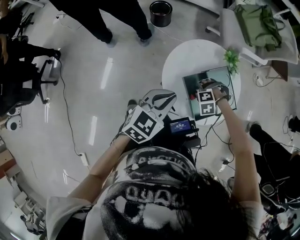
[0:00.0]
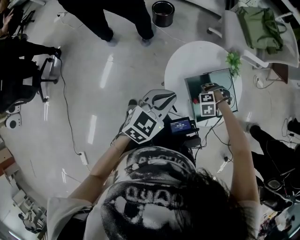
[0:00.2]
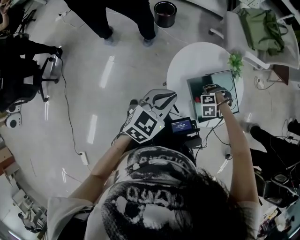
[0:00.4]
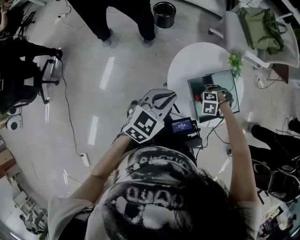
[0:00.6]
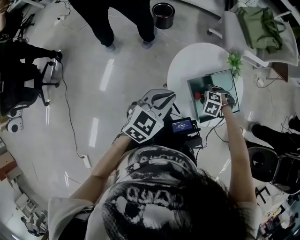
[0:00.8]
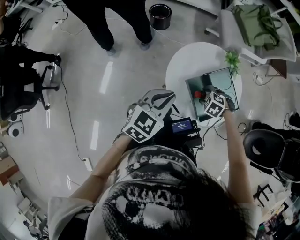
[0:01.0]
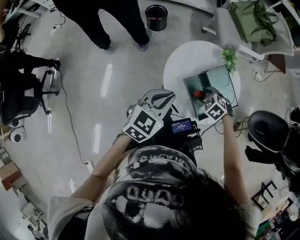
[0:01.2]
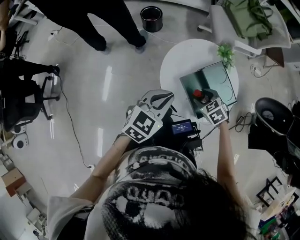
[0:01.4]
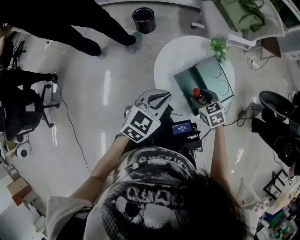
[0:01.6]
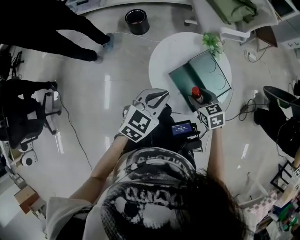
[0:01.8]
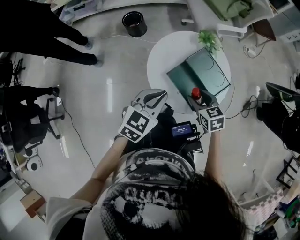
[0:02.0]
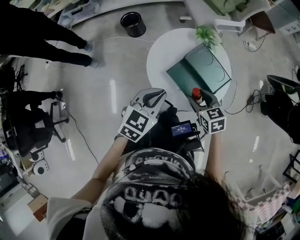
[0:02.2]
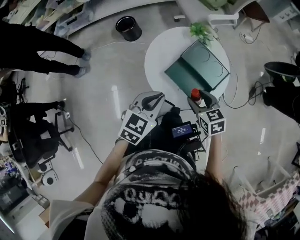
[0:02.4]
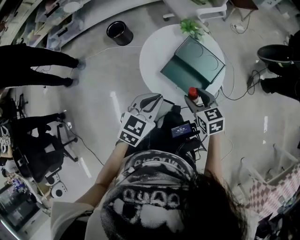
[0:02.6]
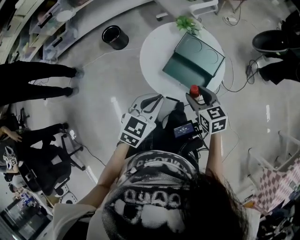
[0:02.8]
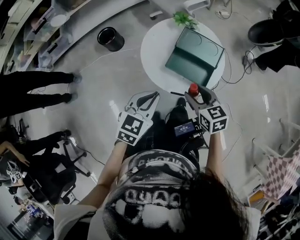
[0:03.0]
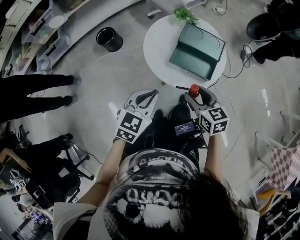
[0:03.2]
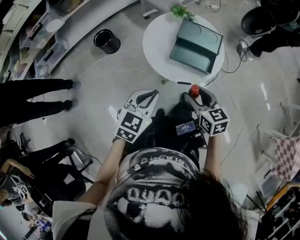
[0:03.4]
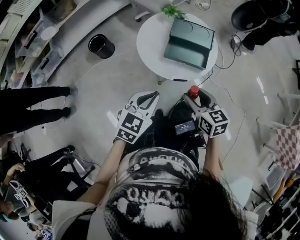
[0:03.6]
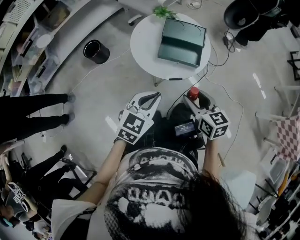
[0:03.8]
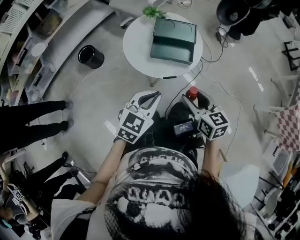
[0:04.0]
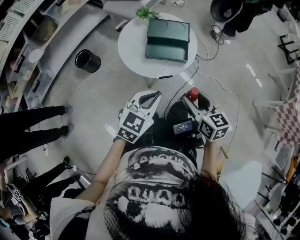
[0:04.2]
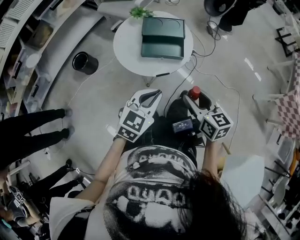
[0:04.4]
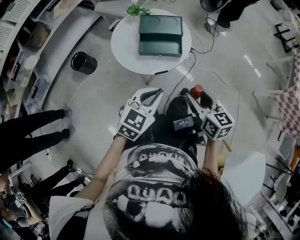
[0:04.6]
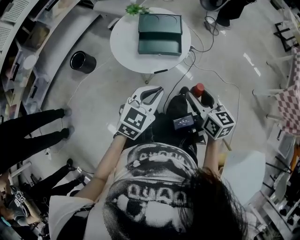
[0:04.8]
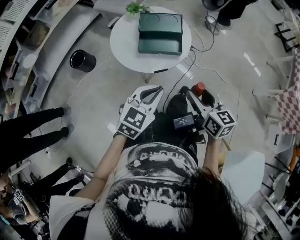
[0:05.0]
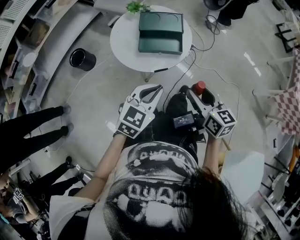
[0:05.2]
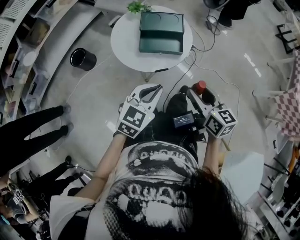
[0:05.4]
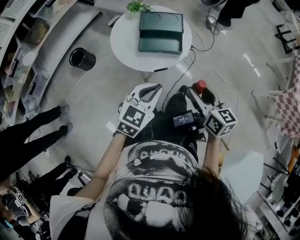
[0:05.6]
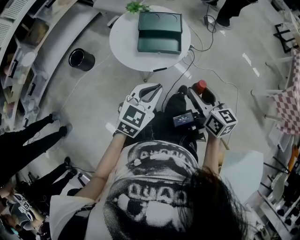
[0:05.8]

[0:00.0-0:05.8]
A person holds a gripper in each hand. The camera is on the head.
0:00.0 to 0:01.4: The right gripper goes some 5 cm upward, and rolls clockwise, seen from behind, by some 70 degrees.
0:01.4 to 0:02.8: The left gripper changes its angle by about 20 degrees. Meanwhile the right gripper shifts about 5 cm upward, and changes its angle by approximately 60 degrees.
0:02.8 to 0:04.4: The left gripper ends up about 10 cm from where it was, and rotates about 30 degrees, while the right gripper moves roughly 20 cm, and swivels approximately 40 degrees.
0:04.4 to 0:05.8: There are only small adjustments of the grippers.

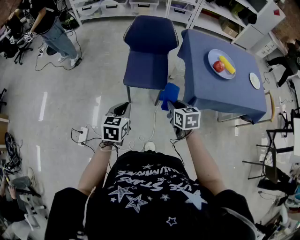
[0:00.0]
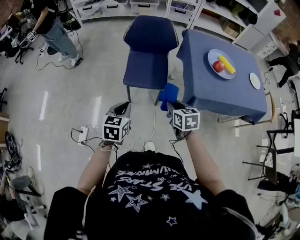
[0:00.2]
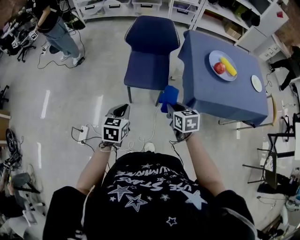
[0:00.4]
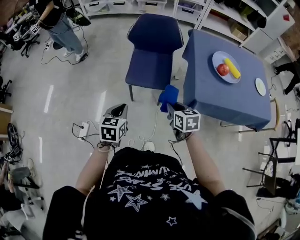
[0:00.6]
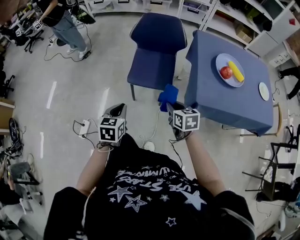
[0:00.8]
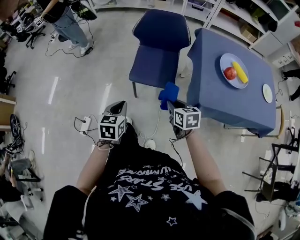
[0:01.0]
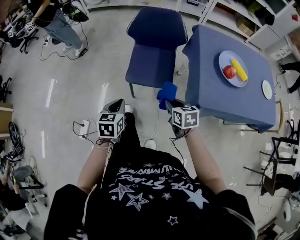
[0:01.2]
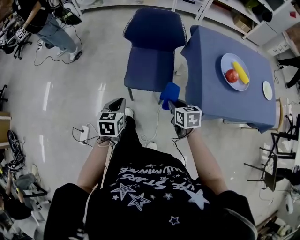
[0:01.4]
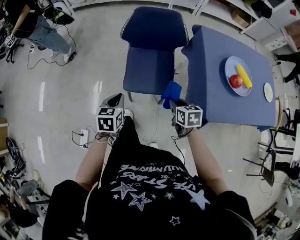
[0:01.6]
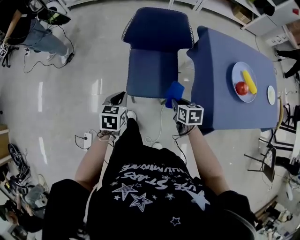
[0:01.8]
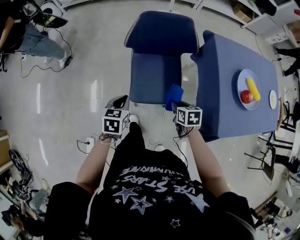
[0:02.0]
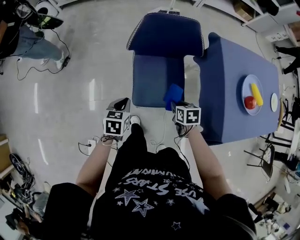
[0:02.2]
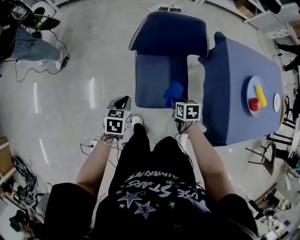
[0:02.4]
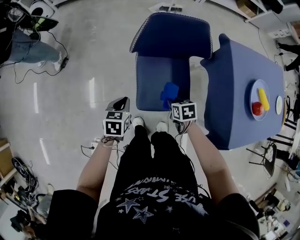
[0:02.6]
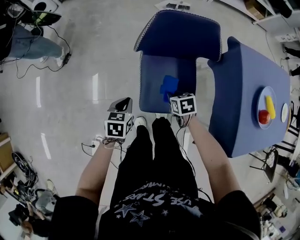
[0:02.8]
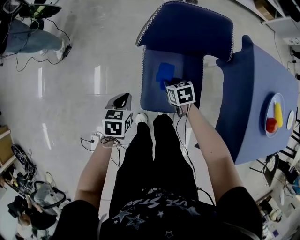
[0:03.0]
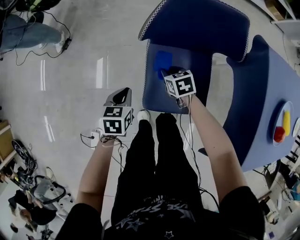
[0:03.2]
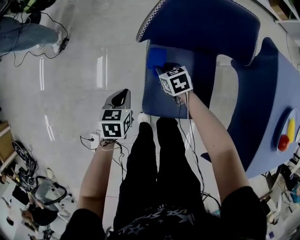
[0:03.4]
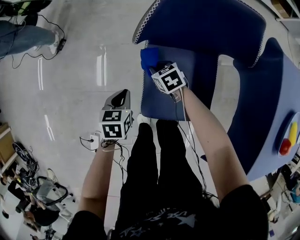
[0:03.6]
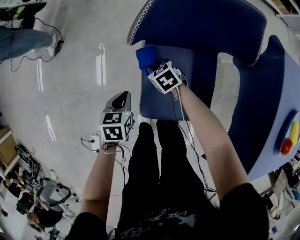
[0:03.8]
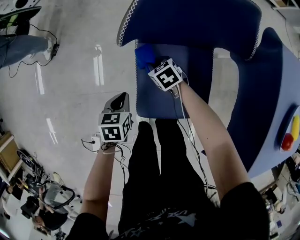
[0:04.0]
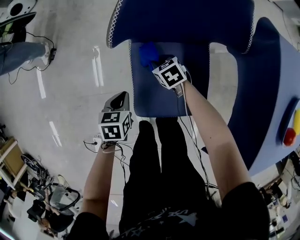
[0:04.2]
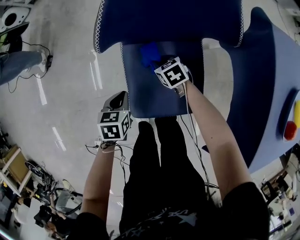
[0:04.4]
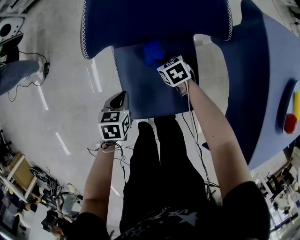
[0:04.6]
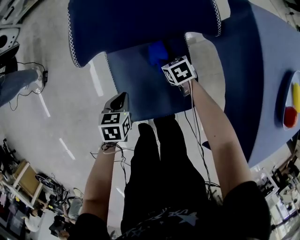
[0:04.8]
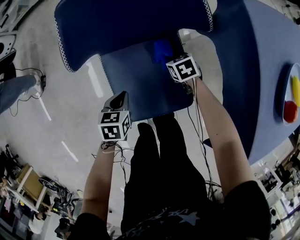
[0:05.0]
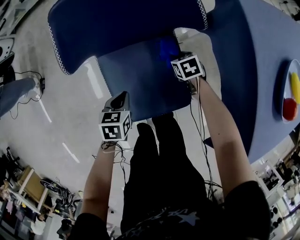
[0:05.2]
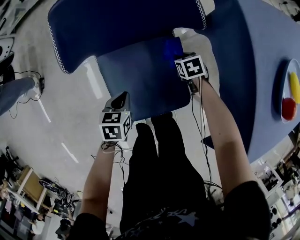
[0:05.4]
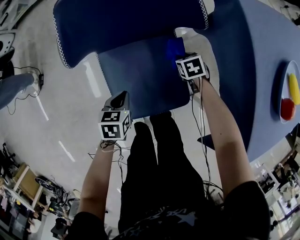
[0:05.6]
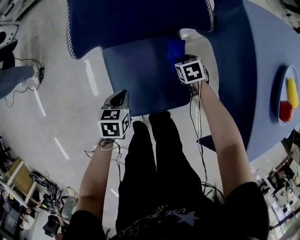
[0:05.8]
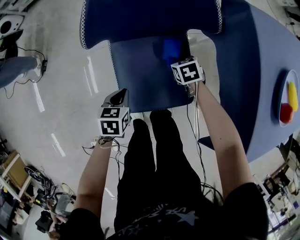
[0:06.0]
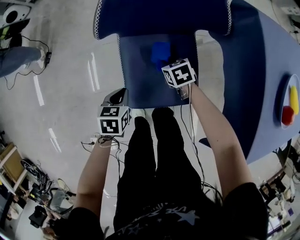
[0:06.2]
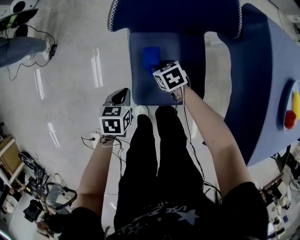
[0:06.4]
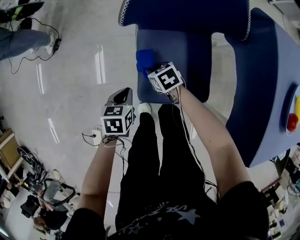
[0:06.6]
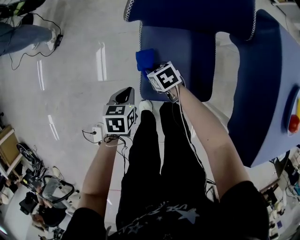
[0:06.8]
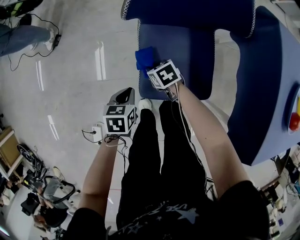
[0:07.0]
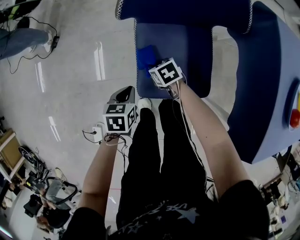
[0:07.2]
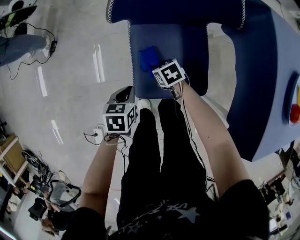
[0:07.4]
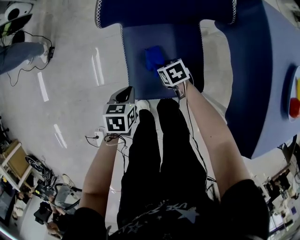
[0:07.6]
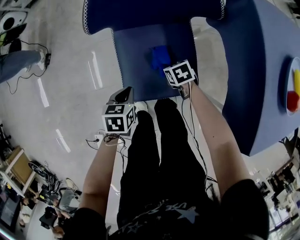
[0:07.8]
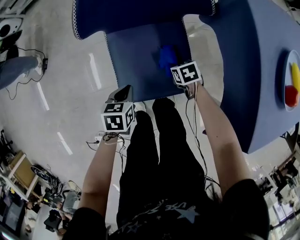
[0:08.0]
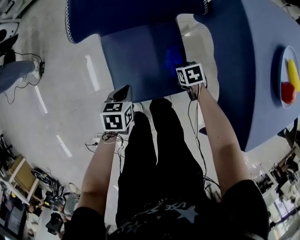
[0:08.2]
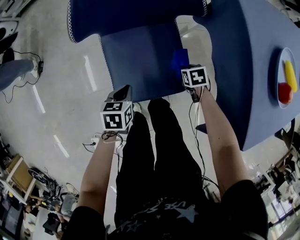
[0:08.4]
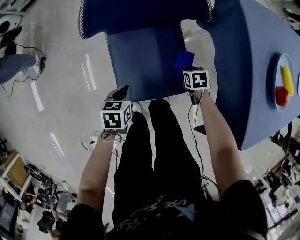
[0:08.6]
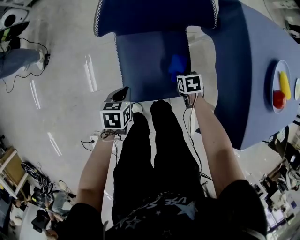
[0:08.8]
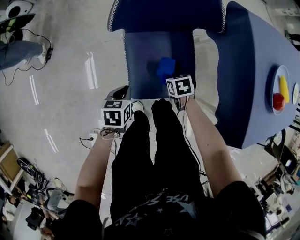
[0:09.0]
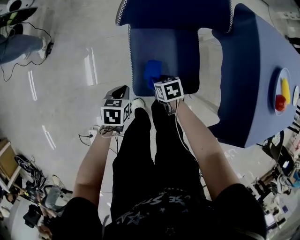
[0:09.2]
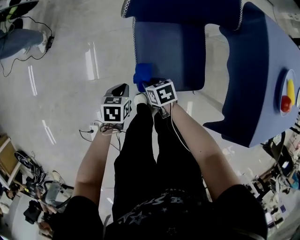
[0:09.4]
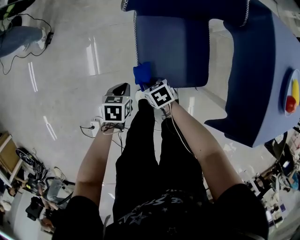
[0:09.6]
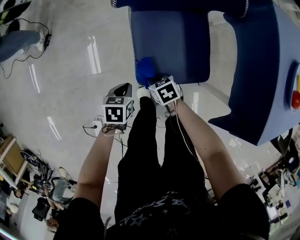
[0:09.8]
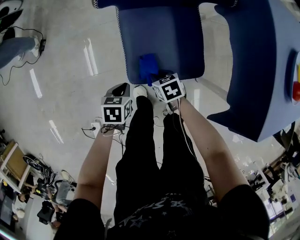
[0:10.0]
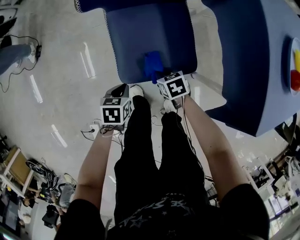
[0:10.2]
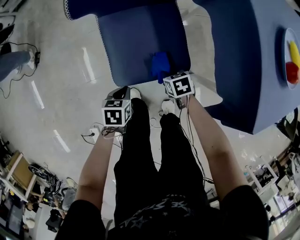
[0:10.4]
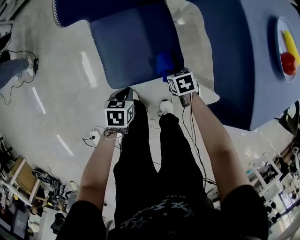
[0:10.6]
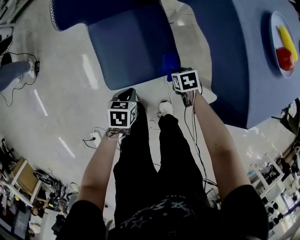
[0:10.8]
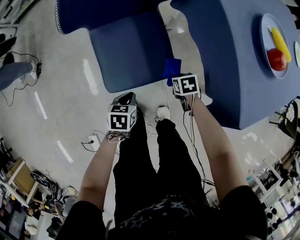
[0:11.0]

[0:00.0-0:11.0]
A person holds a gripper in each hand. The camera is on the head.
0:00.0 to 0:01.6: The right gripper moves forward and downward, approximately 20 cm. Meanwhile the left gripper heads forward, covering some 20 cm.
0:01.6 to 0:03.2: The left gripper is displaced forward and downward by some 30 cm. Meanwhile the right gripper moves forward, downward and to the left, approximately 40 cm.
0:03.2 to 0:04.8: The grippers both shift to the right and downward by about 20 cm.
0:04.8 to 0:06.2: Both grippers travel together backward, approximately 5 cm. The right gripper moves some 10 cm to the right and comes back.
0:06.2 to 0:07.8: The left gripper reaches approximately 5 cm to the left, then returns. The right gripper goes approximately 5 cm backward, and moves some 15 cm to the left and comes back.
0:07.8 to 0:09.4: The right gripper ends up roughly 20 cm from where it was; the left gripper changes place by roughly 10 cm.
0:09.4 to 0:11.0: The right gripper ends up approximately 30 cm from where it was, and swivels roughly 20 degrees. The left gripper changes place by approximately 20 cm.

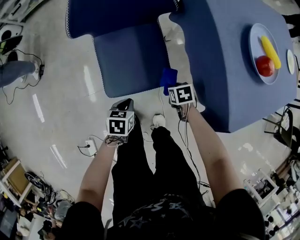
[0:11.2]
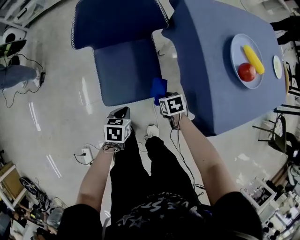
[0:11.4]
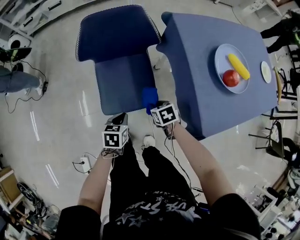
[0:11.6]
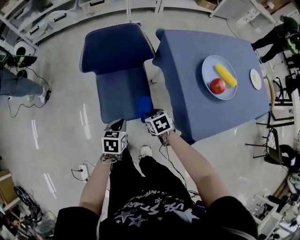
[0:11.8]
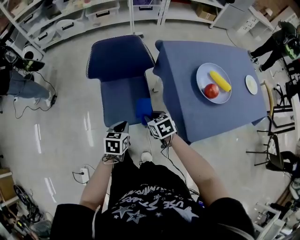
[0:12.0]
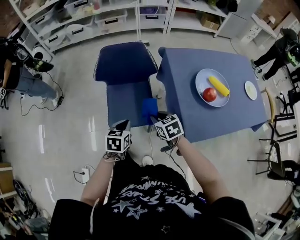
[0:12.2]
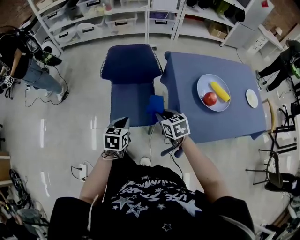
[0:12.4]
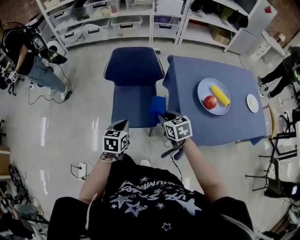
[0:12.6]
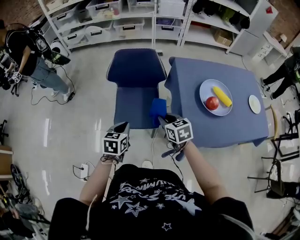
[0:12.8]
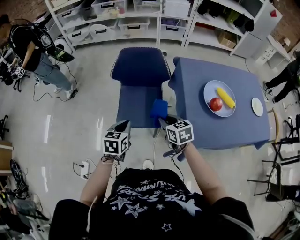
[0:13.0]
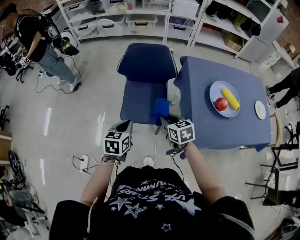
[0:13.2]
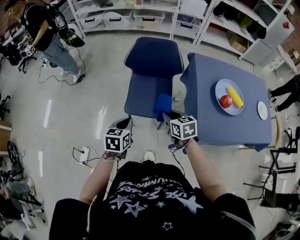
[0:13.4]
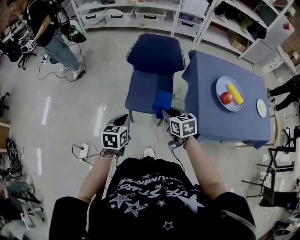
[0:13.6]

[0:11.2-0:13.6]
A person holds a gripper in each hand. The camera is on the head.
0:11.2 to 0:12.4: The two grippers go about 30 cm upward. The right gripper tilts its fingers approximately 30 degrees upward. The left gripper changes its angle by approximately 30 degrees.
0:12.4 to 0:13.6: The two grippers go some 15 cm to the left and backward.

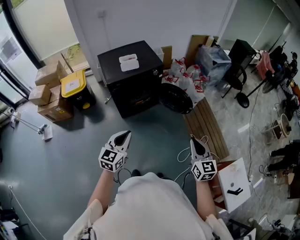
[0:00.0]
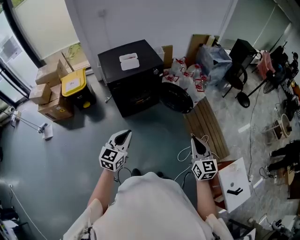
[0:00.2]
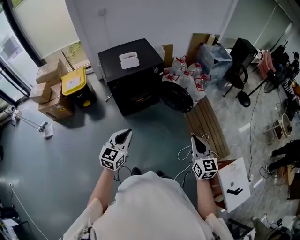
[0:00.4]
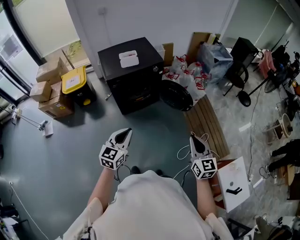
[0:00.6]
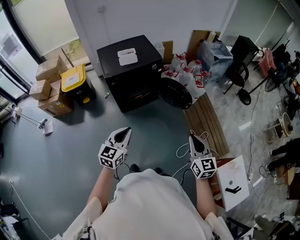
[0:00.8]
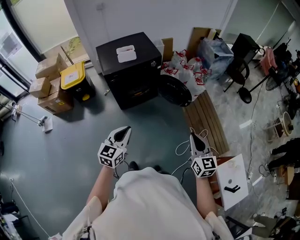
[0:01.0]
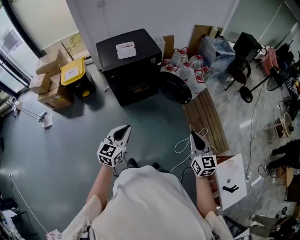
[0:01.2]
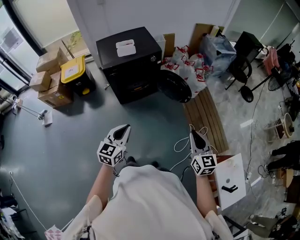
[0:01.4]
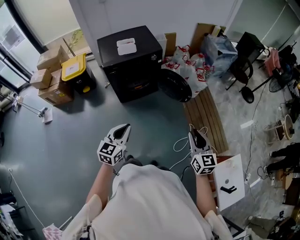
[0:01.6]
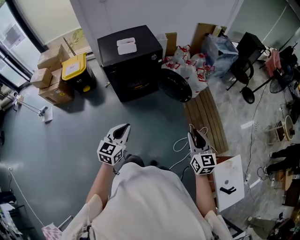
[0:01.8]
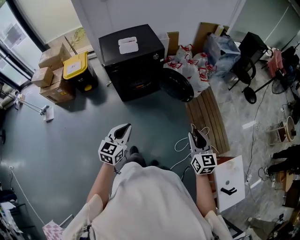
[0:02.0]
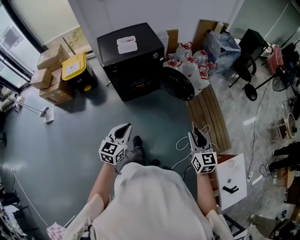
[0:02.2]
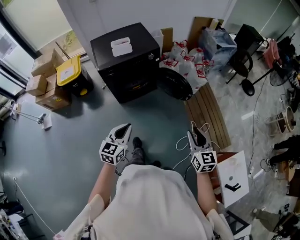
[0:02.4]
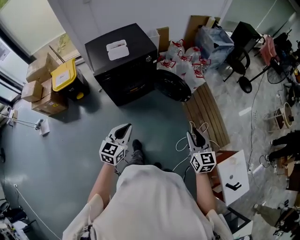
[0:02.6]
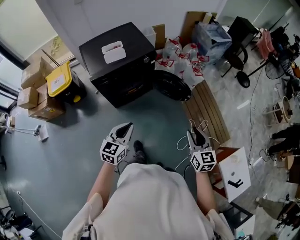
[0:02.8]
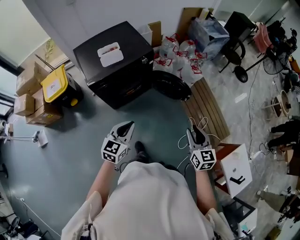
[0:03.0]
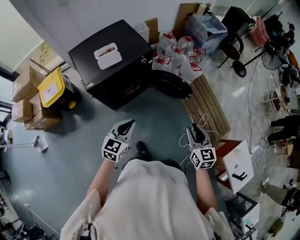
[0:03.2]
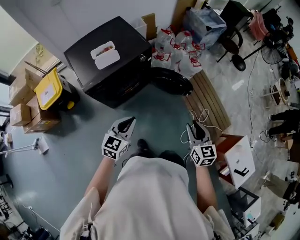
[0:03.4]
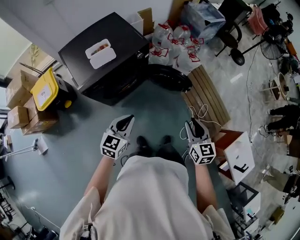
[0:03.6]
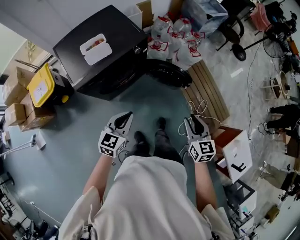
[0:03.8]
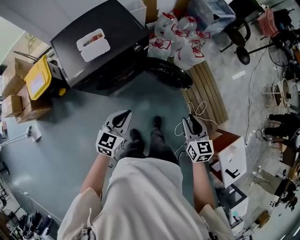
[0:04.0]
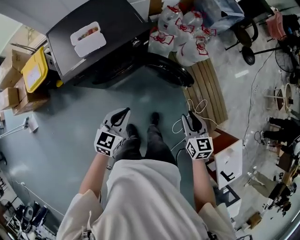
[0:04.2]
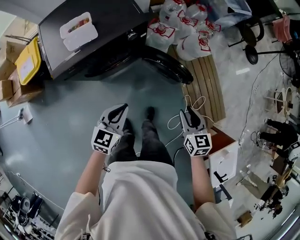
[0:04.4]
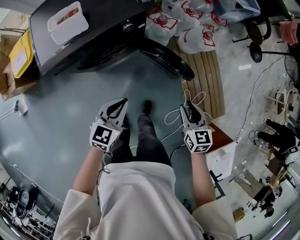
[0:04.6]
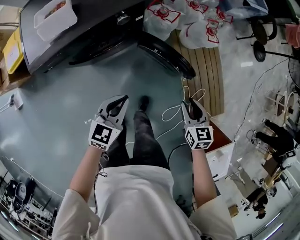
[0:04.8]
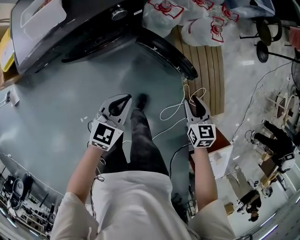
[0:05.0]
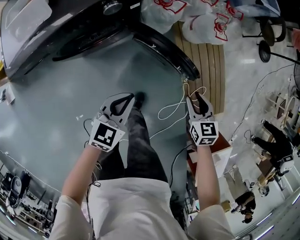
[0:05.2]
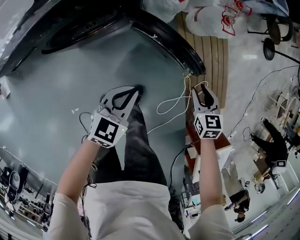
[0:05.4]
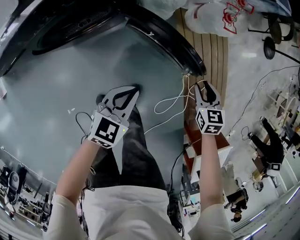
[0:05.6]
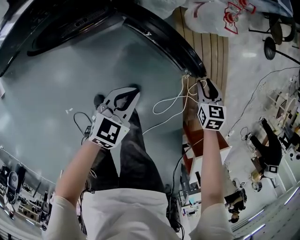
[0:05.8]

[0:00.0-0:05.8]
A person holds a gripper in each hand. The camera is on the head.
0:00.0 to 0:01.4: Both grippers travel together to the right, some 5 cm.
0:01.4 to 0:02.8: Both grippers move forward, about 15 cm. The right gripper opens its fingers.
0:02.8 to 0:04.4: Both grippers travel together forward and downward, roughly 30 cm.
0:04.4 to 0:05.8: The right gripper is displaced downward, forward and to the right by approximately 40 cm, and changes its angle by approximately 20 degrees. The left gripper shifts about 35 cm downward and to the right.
